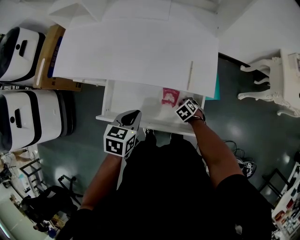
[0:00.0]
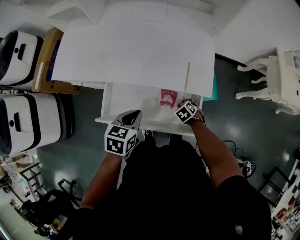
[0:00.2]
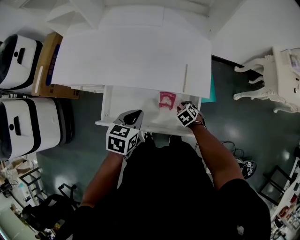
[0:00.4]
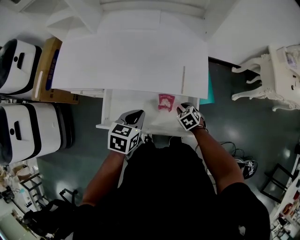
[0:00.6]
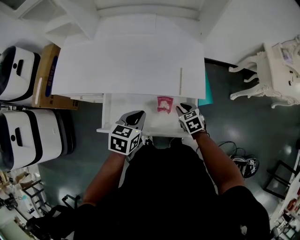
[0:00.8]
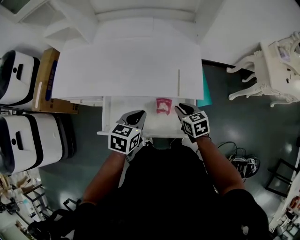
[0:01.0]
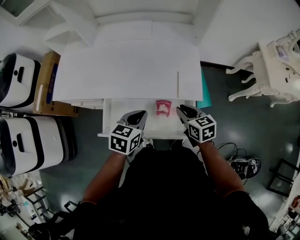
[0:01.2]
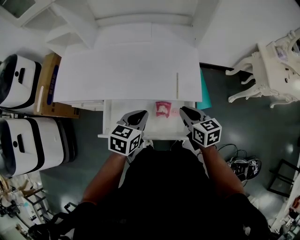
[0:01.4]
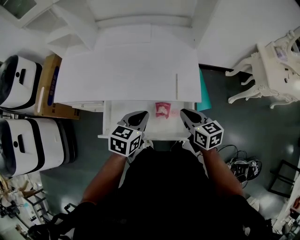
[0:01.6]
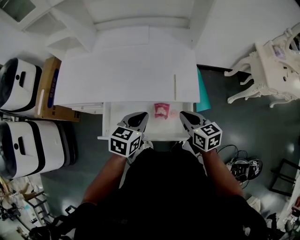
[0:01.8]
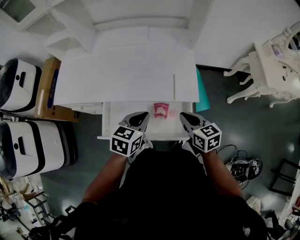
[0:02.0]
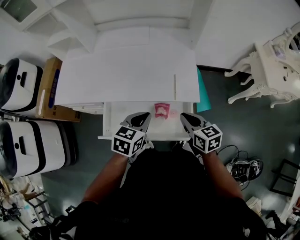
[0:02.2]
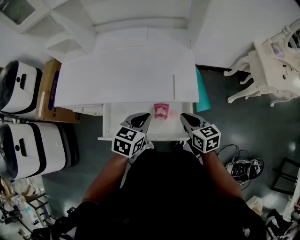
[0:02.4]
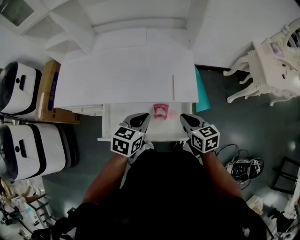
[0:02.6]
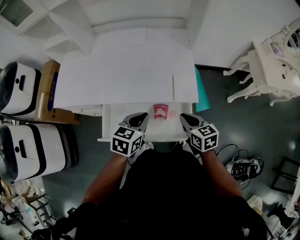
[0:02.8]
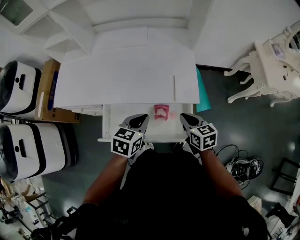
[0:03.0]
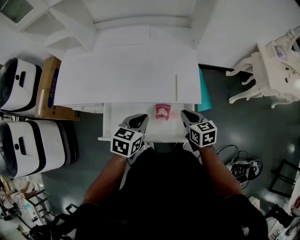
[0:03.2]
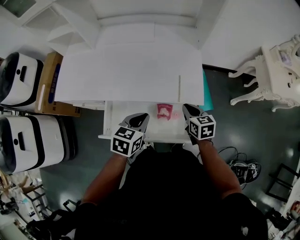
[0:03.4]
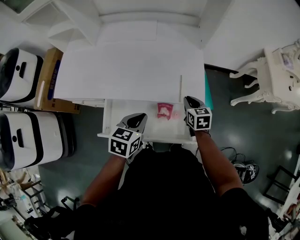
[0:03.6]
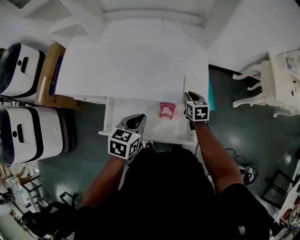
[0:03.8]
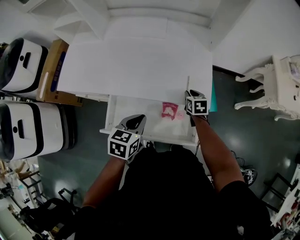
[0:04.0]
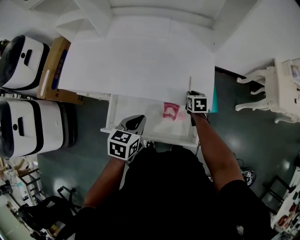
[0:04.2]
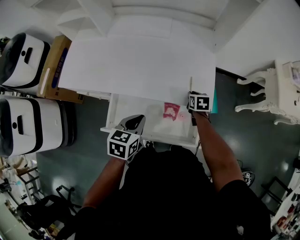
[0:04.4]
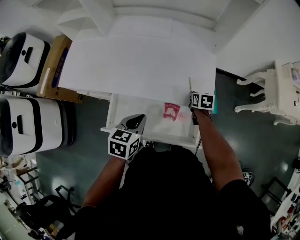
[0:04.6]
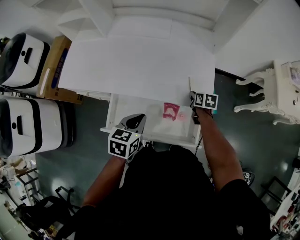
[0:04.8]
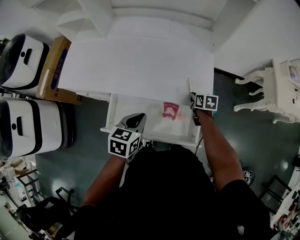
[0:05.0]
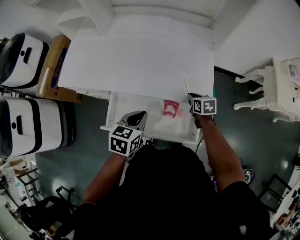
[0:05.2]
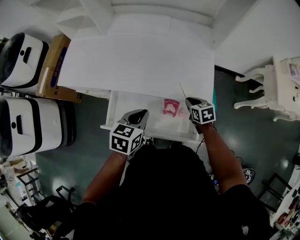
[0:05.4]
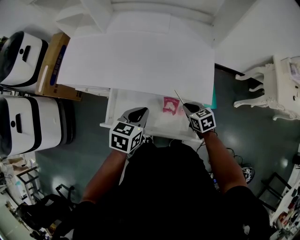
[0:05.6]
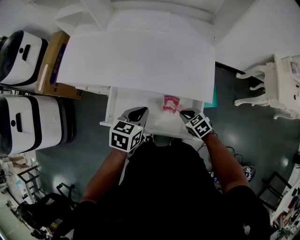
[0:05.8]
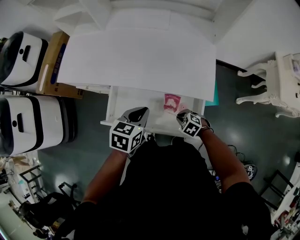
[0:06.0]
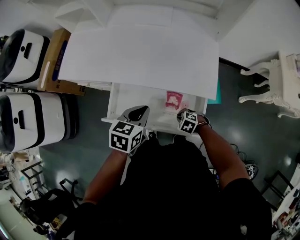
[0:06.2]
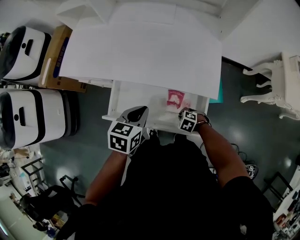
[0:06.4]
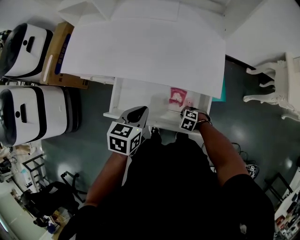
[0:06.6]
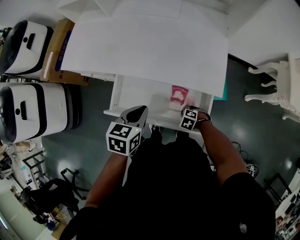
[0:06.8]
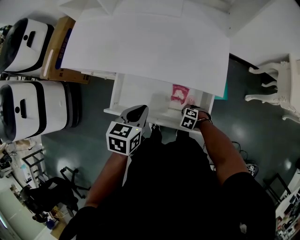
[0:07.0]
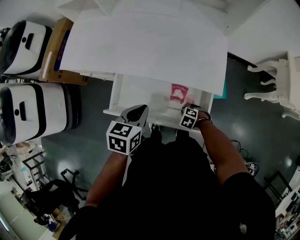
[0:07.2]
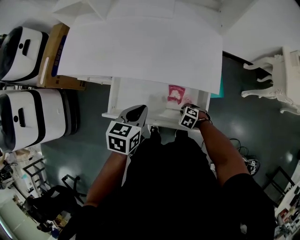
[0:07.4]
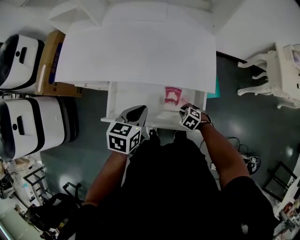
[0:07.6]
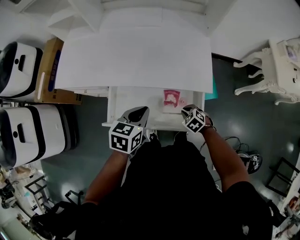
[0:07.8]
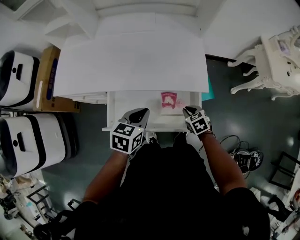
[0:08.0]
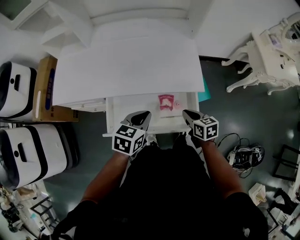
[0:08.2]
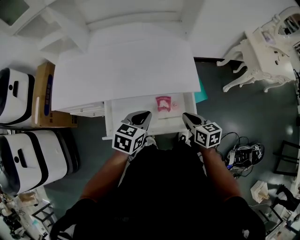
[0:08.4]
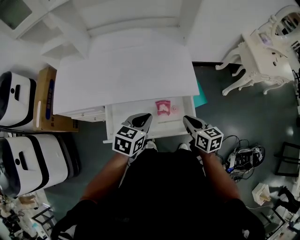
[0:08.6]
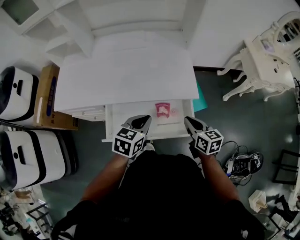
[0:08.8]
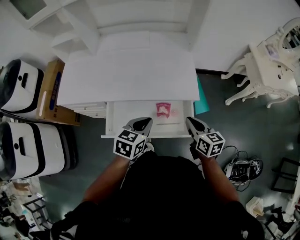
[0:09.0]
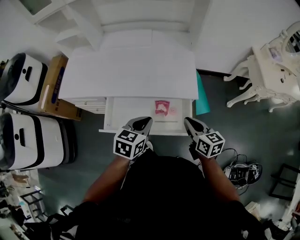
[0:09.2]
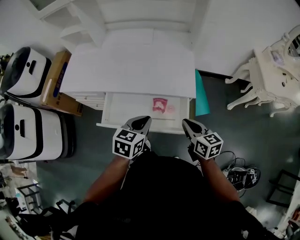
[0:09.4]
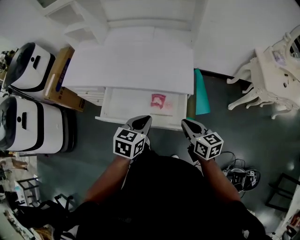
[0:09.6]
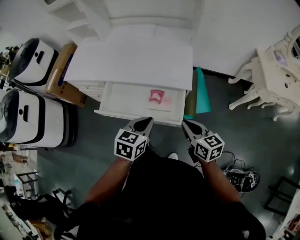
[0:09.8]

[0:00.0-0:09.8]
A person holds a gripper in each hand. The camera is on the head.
0:00.0 to 0:01.4: The right gripper heads upward, covering approximately 30 cm, and tips its fingers upward by approximately 40 degrees; the left gripper moves upward, approximately 5 cm.
0:01.4 to 0:02.8: The grippers move only a little.
0:02.8 to 0:04.2: The right gripper goes some 20 cm forward and downward, and rotates some 20 degrees, while the left gripper heads to the left, covering roughly 5 cm.
0:04.2 to 0:05.6: The right gripper goes about 10 cm backward, and swivels approximately 20 degrees.
0:05.6 to 0:07.0: The right gripper moves downward, about 15 cm, and rotates approximately 60 degrees.
0:07.0 to 0:08.4: The right gripper goes approximately 25 cm upward, and points its fingers about 40 degrees further upward. Meanwhile the left gripper changes place by about 5 cm, and changes its angle by some 30 degrees.
0:08.4 to 0:09.8: The left gripper shifts about 15 cm to the right and backward. The right gripper heads to the right, backward and upward, covering about 15 cm.

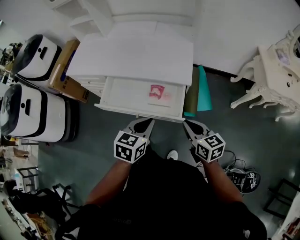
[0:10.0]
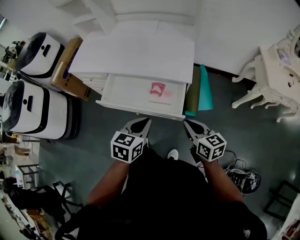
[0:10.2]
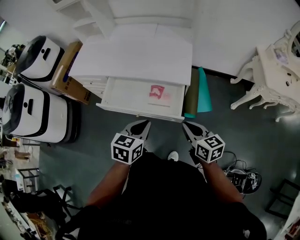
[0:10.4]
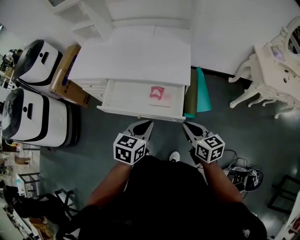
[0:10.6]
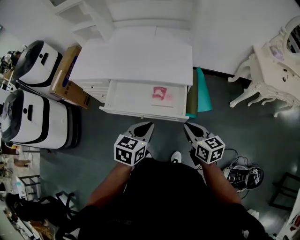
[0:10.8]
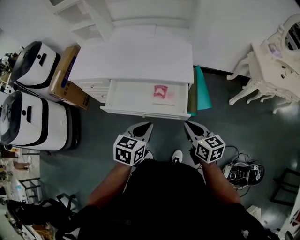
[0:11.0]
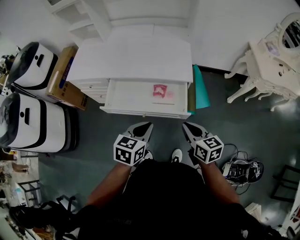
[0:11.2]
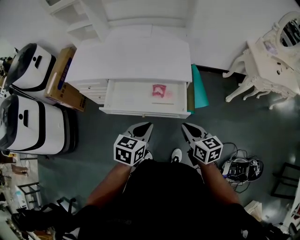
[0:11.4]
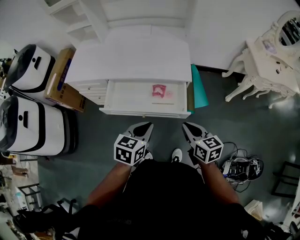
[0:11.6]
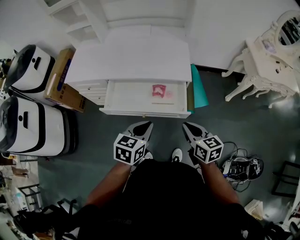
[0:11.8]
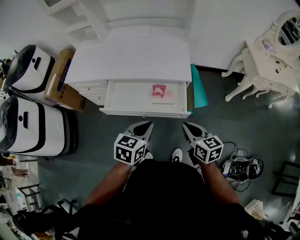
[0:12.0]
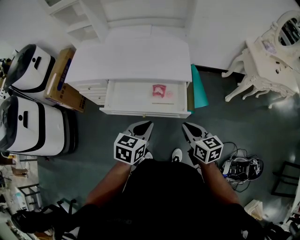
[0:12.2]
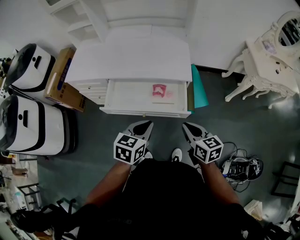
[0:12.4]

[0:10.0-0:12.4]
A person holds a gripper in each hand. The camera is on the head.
0:10.0 to 0:11.2: Both grippers travel together to the left, approximately 5 cm.
0:11.2 to 0:12.4: Both grippers stay about where they are.

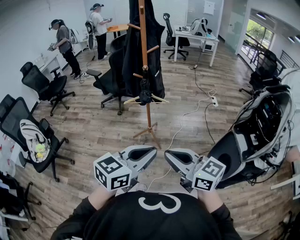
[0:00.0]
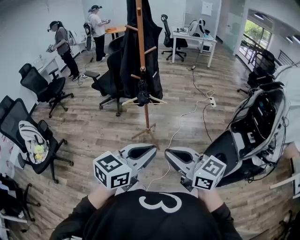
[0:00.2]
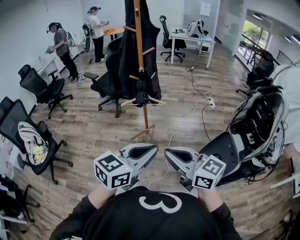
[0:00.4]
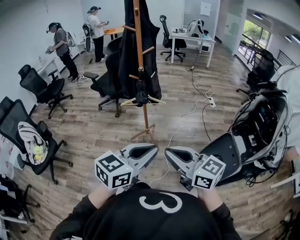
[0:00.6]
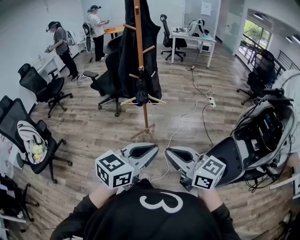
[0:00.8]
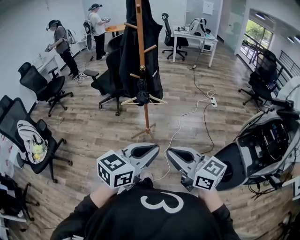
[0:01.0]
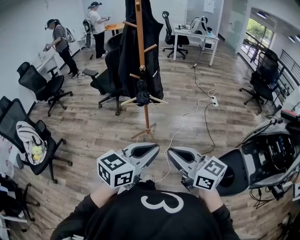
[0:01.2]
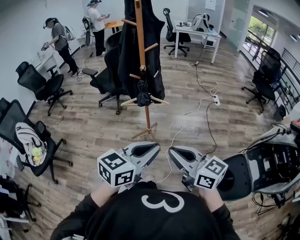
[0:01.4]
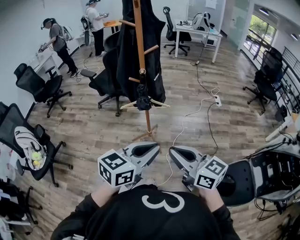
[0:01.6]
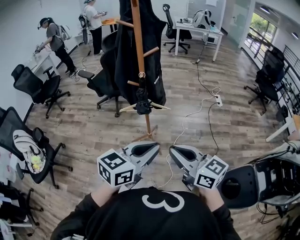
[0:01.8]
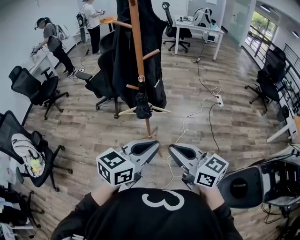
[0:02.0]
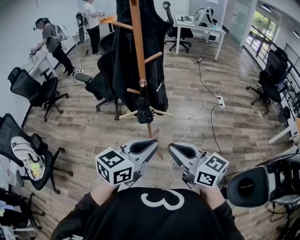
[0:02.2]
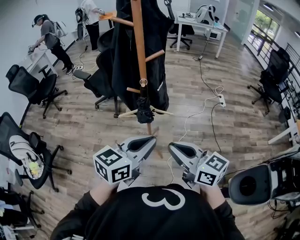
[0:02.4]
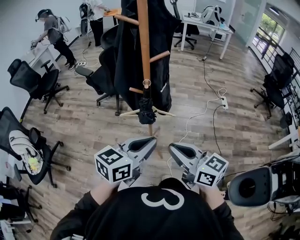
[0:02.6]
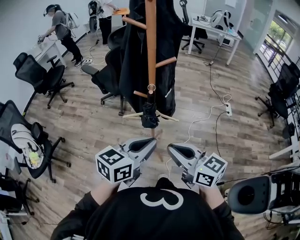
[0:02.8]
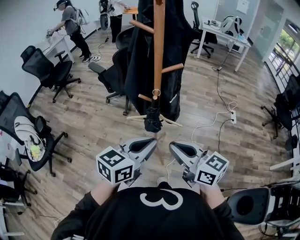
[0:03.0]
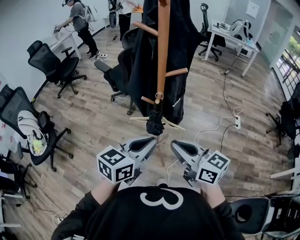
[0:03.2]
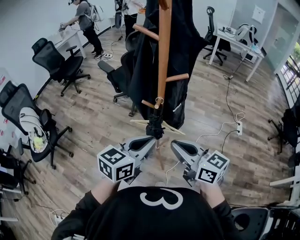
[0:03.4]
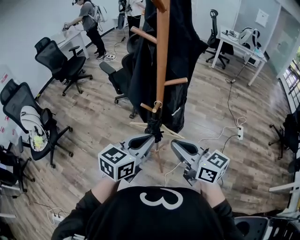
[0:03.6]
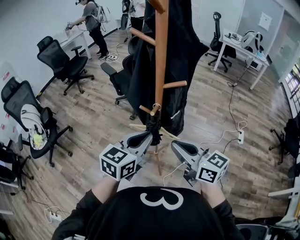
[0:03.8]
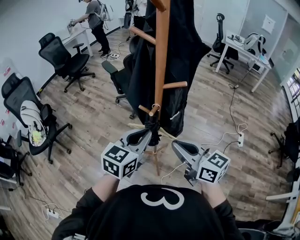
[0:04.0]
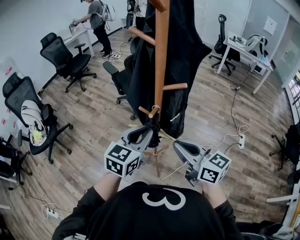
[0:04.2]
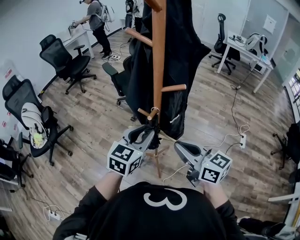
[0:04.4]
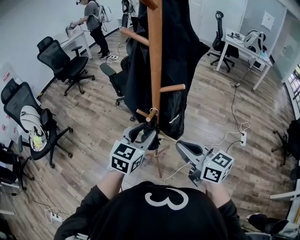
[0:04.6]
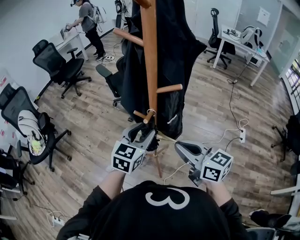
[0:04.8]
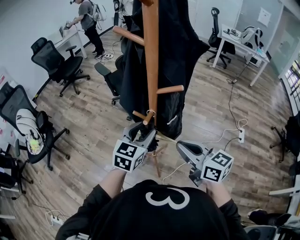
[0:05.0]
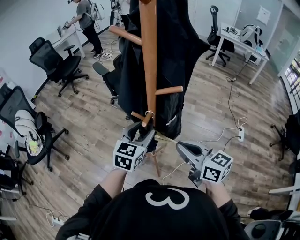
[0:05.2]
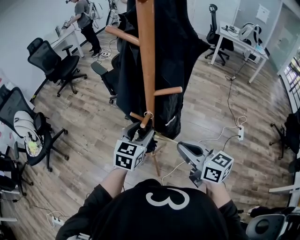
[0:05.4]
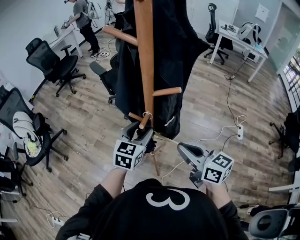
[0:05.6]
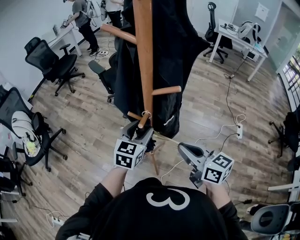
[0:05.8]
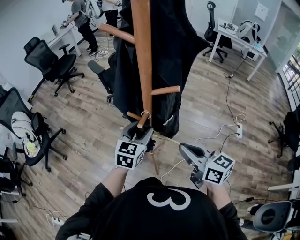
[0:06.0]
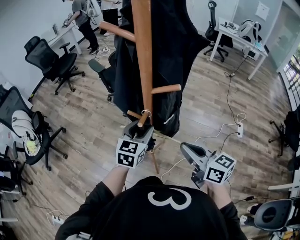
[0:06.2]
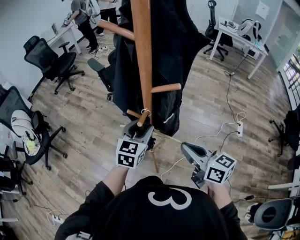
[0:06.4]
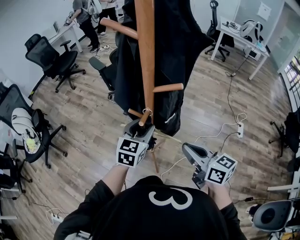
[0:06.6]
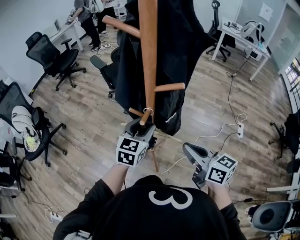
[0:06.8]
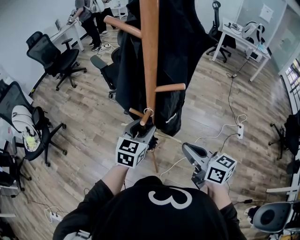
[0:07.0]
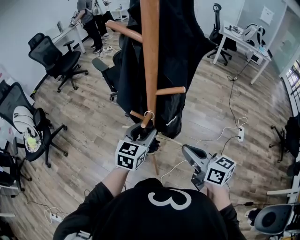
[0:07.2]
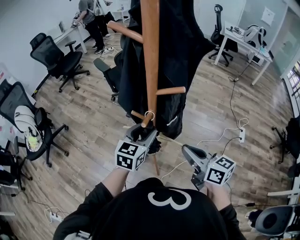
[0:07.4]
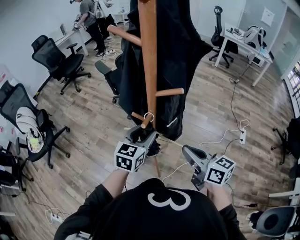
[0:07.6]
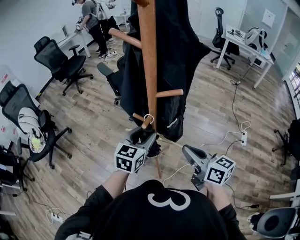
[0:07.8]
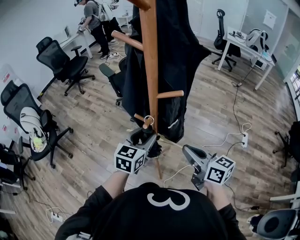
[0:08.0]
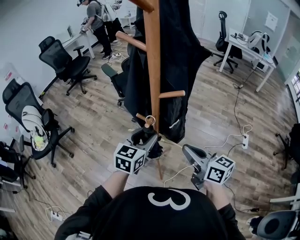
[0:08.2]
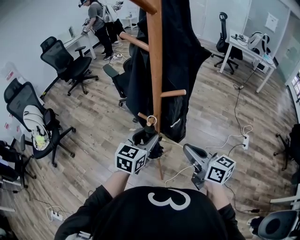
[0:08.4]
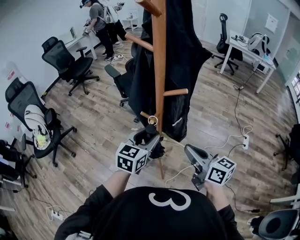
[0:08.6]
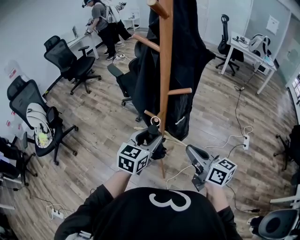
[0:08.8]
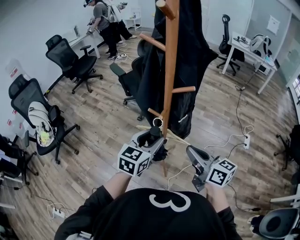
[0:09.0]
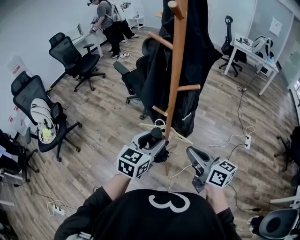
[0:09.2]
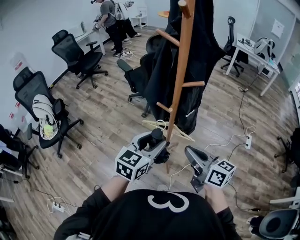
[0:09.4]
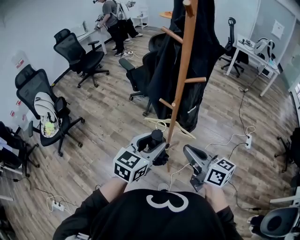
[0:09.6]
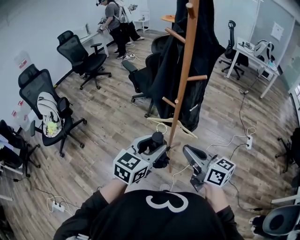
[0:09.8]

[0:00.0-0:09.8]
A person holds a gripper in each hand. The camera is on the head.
0:00.0 to 0:01.4: The grippers both shift forward by some 10 cm.
0:01.4 to 0:02.8: The two grippers go approximately 25 cm forward.
0:02.8 to 0:04.2: The right gripper is displaced forward and to the right by roughly 15 cm. The left gripper shifts some 15 cm forward, and changes its angle by approximately 30 degrees.
0:04.2 to 0:05.6: The left gripper heads forward and downward, covering roughly 10 cm, and opens. Meanwhile the right gripper goes some 5 cm downward.
0:05.6 to 0:07.0: There are only small adjustments of the grippers.
0:07.0 to 0:08.4: The left gripper changes place by approximately 5 cm.
0:08.4 to 0:09.8: Both grippers travel together backward and to the left, approximately 20 cm.

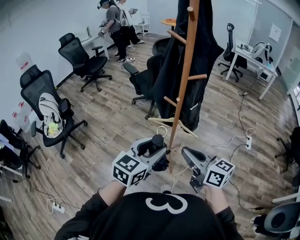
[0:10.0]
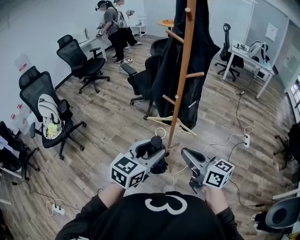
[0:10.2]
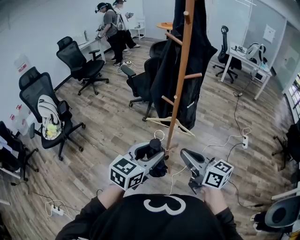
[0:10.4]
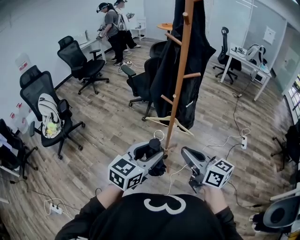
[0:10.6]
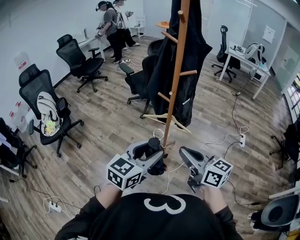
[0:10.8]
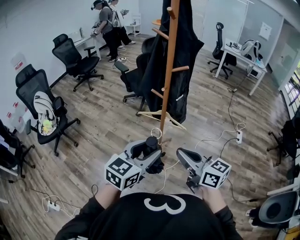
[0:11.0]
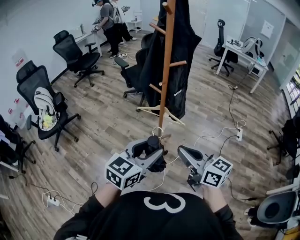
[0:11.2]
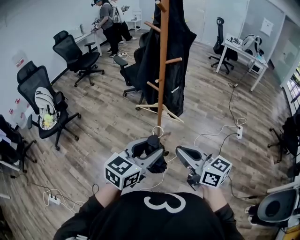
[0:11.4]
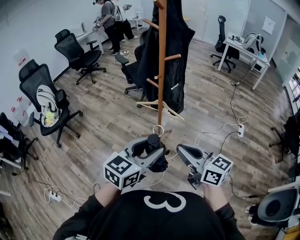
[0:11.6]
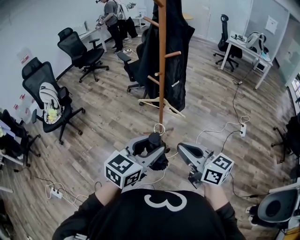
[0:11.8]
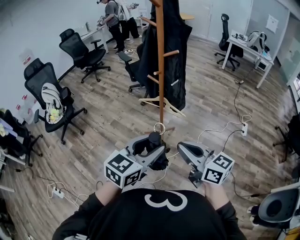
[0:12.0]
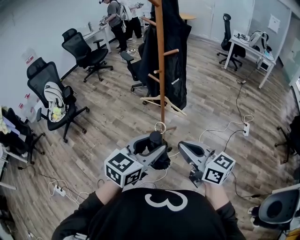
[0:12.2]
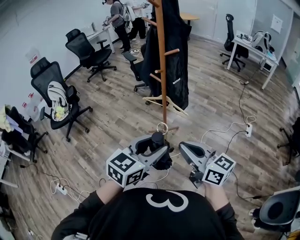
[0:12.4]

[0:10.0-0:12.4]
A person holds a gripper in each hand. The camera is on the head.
0:10.0 to 0:11.2: The grippers both shift backward and to the right by approximately 10 cm.
0:11.2 to 0:12.4: The grippers both shift backward and to the right by approximately 10 cm.
